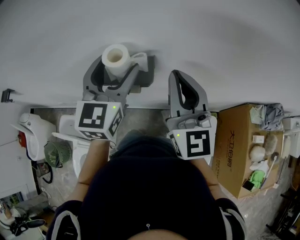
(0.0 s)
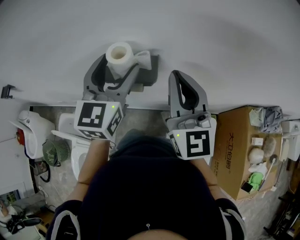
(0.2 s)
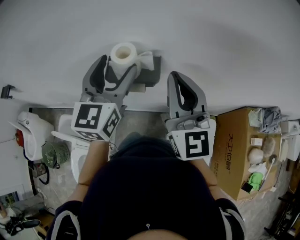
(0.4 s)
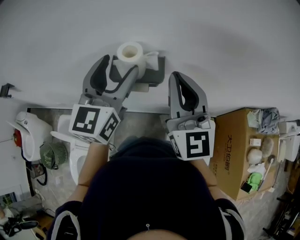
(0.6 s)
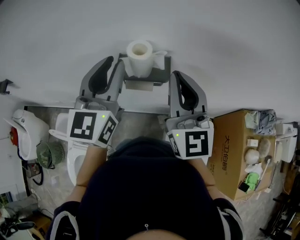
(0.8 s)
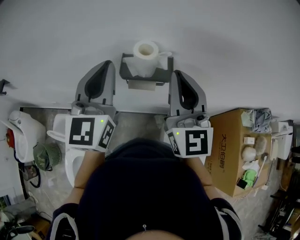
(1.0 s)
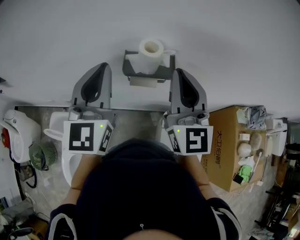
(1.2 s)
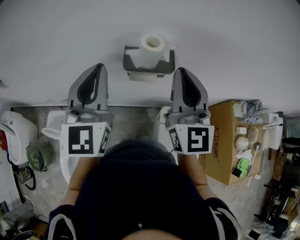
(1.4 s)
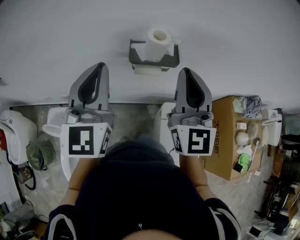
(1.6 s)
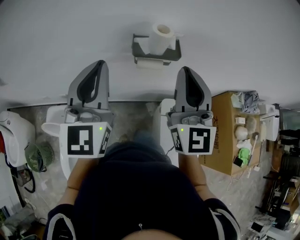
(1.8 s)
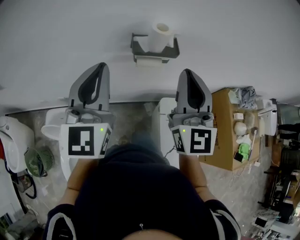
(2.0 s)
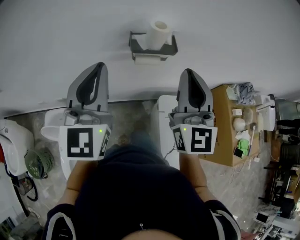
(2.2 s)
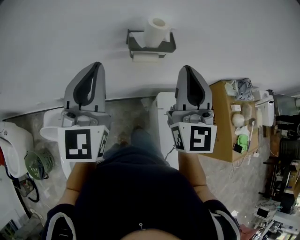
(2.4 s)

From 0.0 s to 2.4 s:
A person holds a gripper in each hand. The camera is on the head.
From 0.0 s to 1.2 s: The left gripper heads to the left and backward, covering some 15 cm, and closes its fingers, while the right gripper heads to the left, covering about 10 cm.
From 1.2 s to 2.4 s: The grippers both shift backward by about 10 cm.

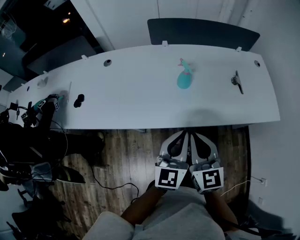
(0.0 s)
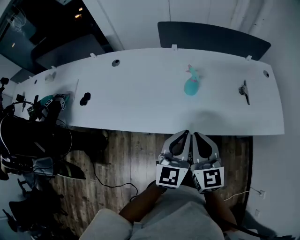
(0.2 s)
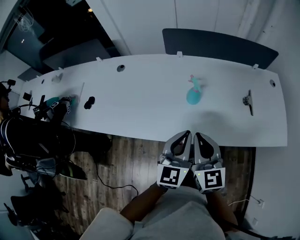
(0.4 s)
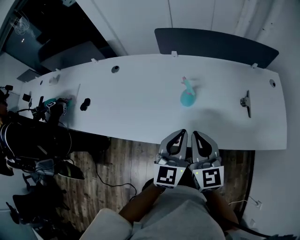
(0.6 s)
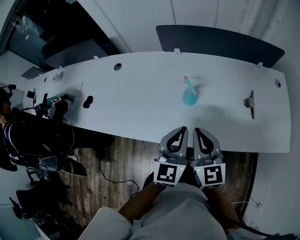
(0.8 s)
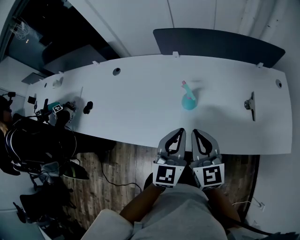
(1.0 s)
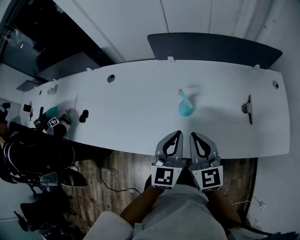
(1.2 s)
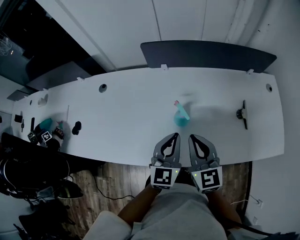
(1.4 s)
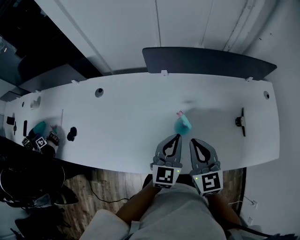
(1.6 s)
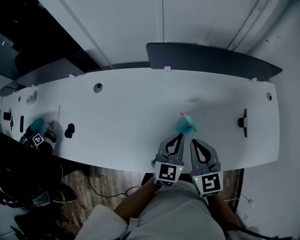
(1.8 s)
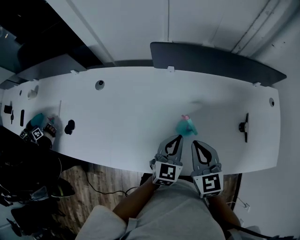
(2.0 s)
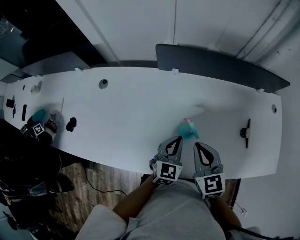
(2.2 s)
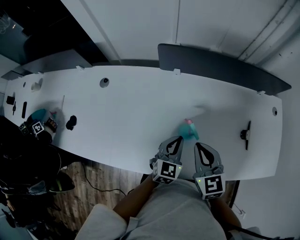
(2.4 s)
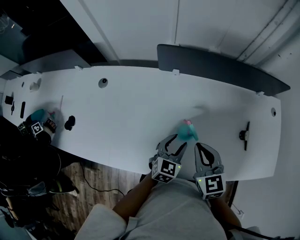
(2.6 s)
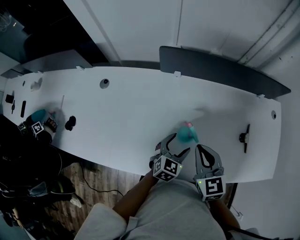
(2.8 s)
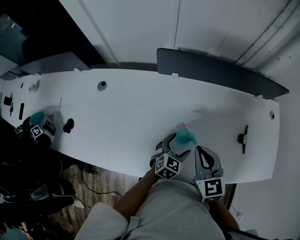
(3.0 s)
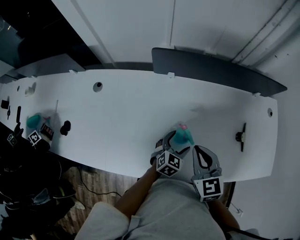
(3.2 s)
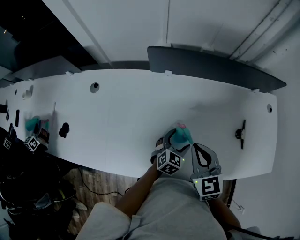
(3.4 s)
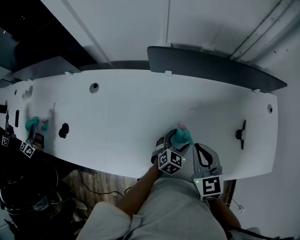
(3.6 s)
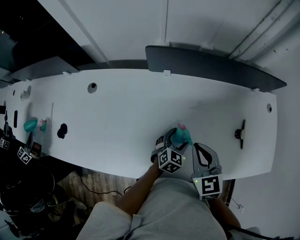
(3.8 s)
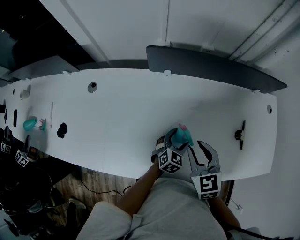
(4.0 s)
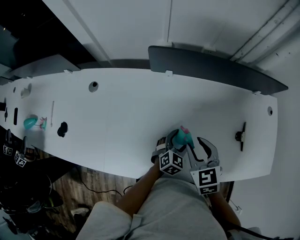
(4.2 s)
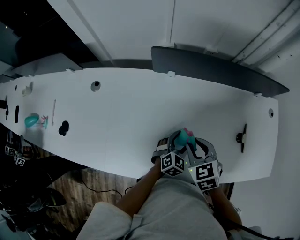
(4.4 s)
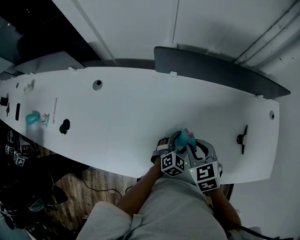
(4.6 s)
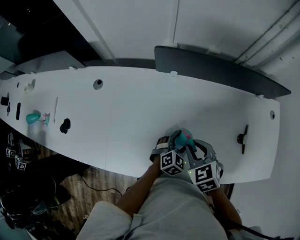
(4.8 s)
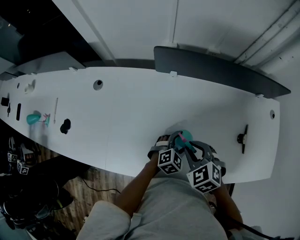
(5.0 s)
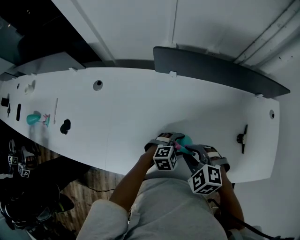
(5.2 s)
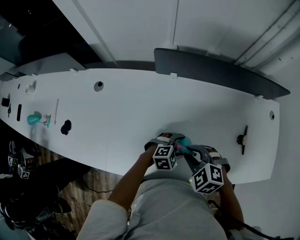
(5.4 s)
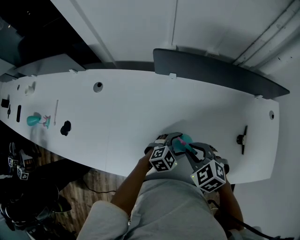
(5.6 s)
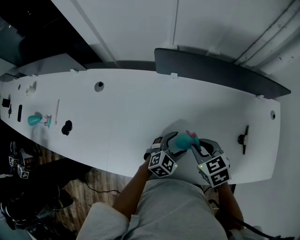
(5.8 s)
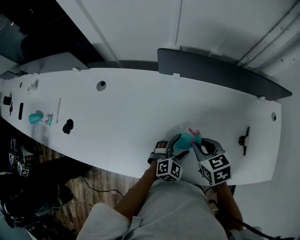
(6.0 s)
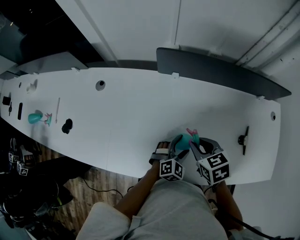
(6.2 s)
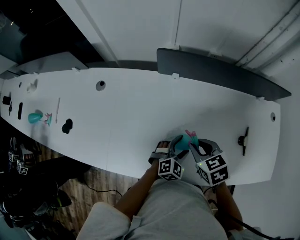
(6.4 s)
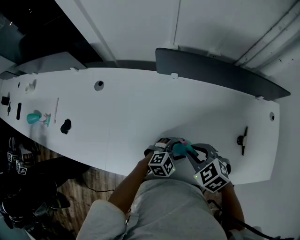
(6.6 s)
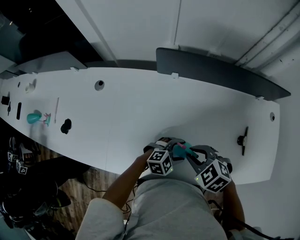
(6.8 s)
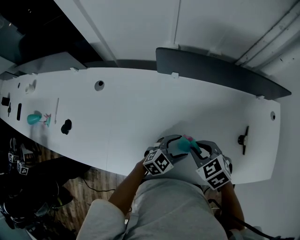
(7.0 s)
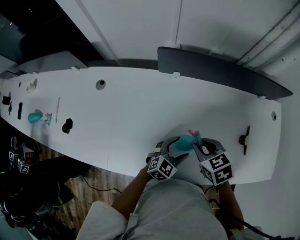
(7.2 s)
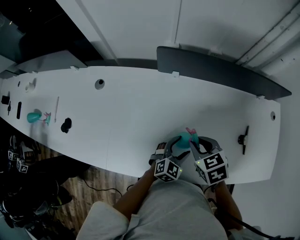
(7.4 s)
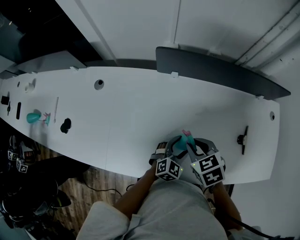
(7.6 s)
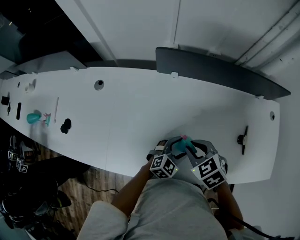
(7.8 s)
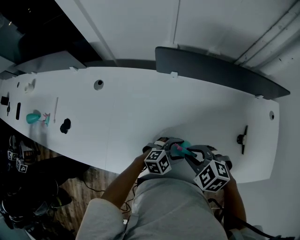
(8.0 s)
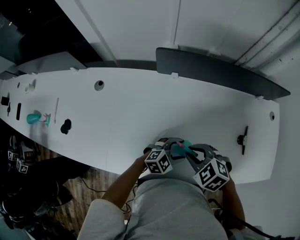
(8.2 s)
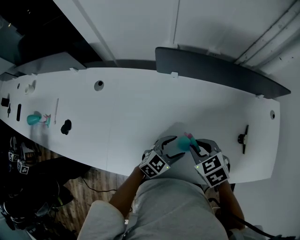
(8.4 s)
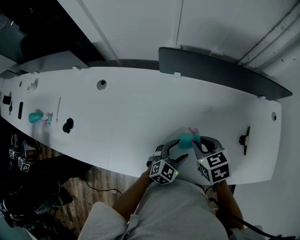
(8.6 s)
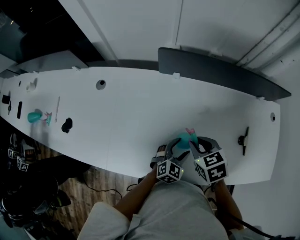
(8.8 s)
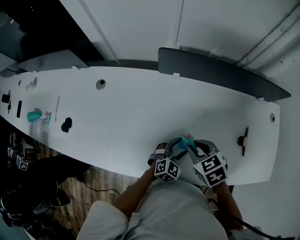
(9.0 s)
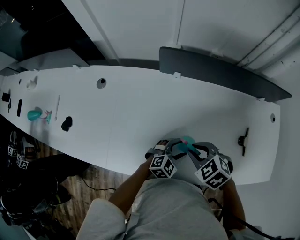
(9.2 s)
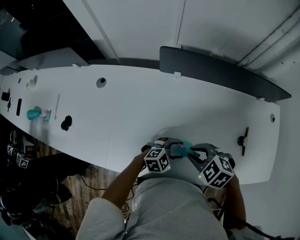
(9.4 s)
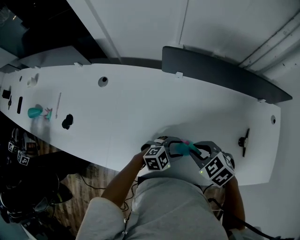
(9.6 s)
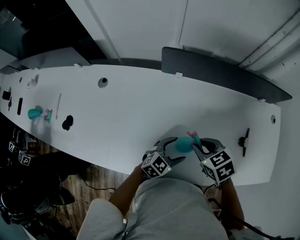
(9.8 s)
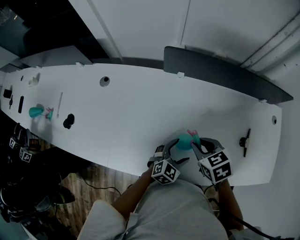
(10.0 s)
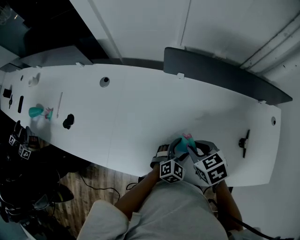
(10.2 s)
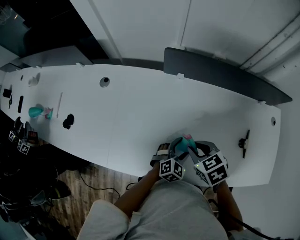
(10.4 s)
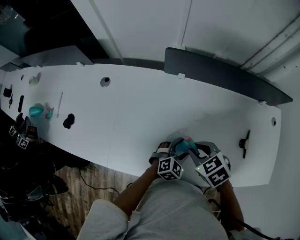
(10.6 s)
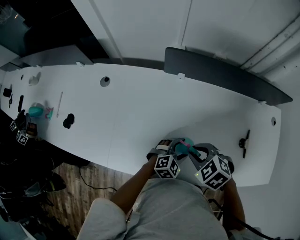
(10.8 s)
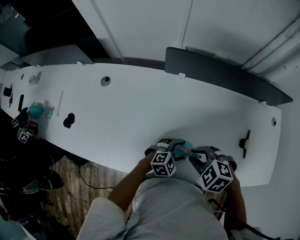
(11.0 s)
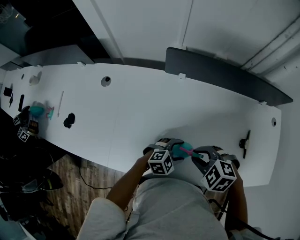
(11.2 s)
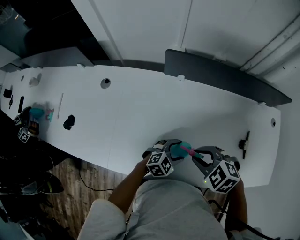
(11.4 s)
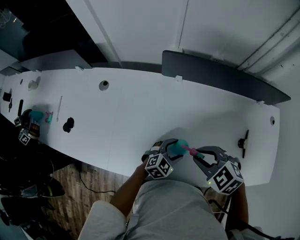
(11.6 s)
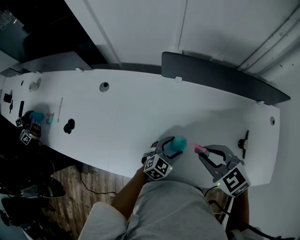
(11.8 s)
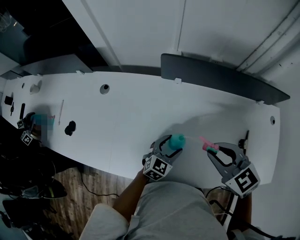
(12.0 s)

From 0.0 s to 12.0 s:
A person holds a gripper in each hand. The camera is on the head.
From 0.0 s to 1.6 s: Both grippers travel together forward, roughly 25 cm.
From 1.6 s to 3.0 s: The left gripper goes roughly 15 cm downward, changes its angle by approximately 30 degrees, and opens its fingers.
From 3.0 s to 4.4 s: The right gripper moves downward, some 5 cm, swivels some 20 degrees, and opens up.
From 10.4 s to 12.0 s: The left gripper moves roughly 5 cm. Meanwhile the right gripper is displaced upward by roughly 10 cm, and turns by about 30 degrees.

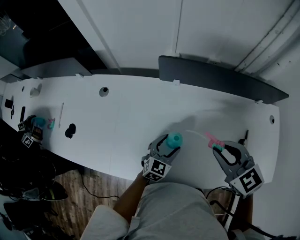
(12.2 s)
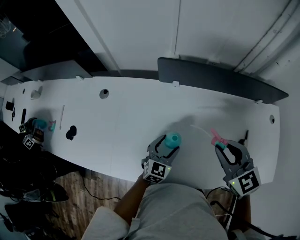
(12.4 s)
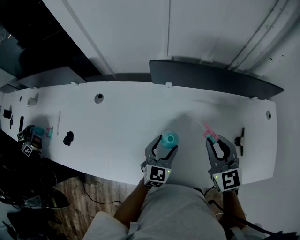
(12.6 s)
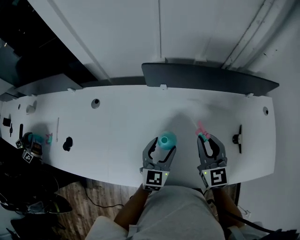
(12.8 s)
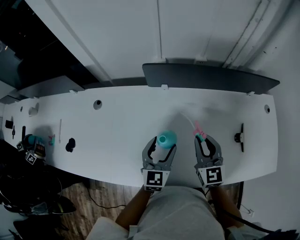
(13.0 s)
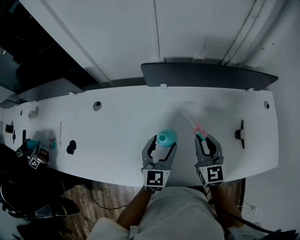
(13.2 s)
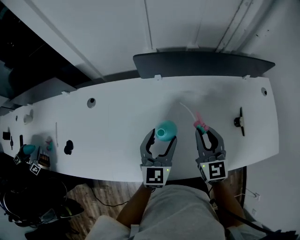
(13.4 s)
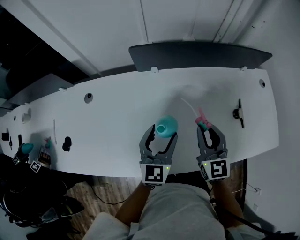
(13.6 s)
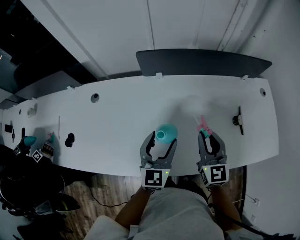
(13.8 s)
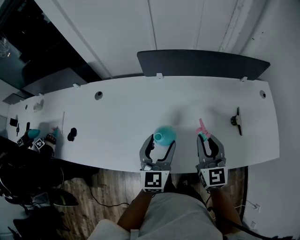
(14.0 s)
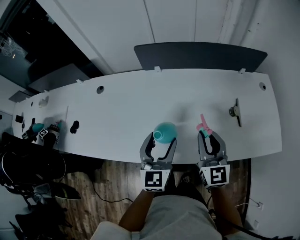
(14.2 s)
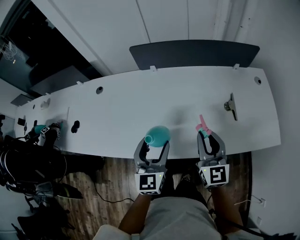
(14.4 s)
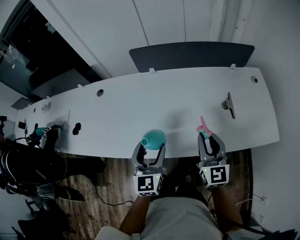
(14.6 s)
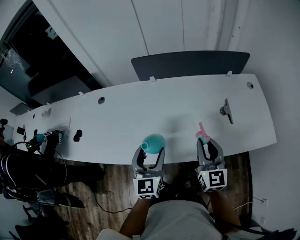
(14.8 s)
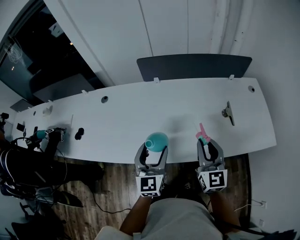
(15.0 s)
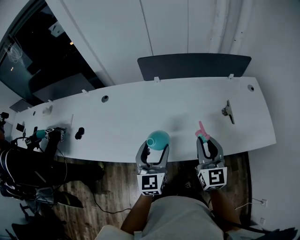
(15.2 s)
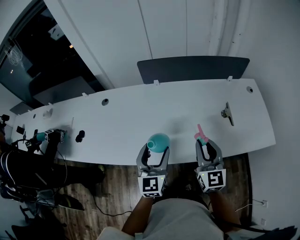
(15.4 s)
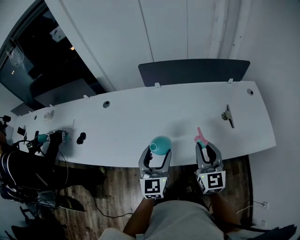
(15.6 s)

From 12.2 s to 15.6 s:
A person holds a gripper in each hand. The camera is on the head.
From 12.2 s to 13.8 s: The left gripper shifts some 15 cm upward, and changes its angle by roughly 20 degrees, while the right gripper shifts some 5 cm downward, and turns by approximately 40 degrees.
From 13.8 s to 15.6 s: The two grippers go roughly 15 cm backward.

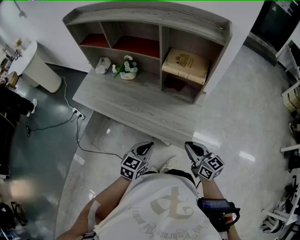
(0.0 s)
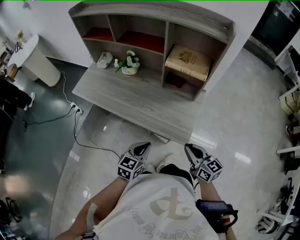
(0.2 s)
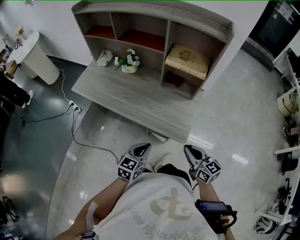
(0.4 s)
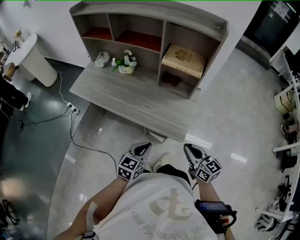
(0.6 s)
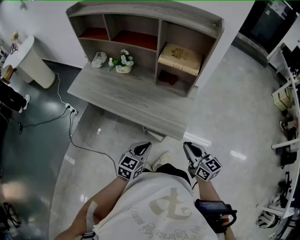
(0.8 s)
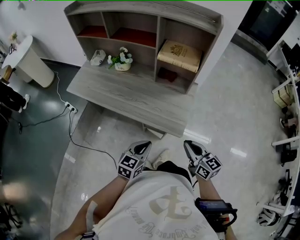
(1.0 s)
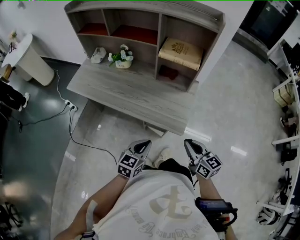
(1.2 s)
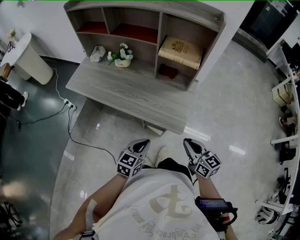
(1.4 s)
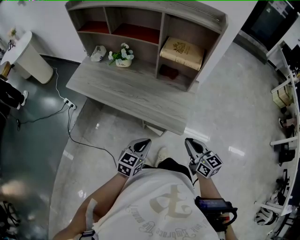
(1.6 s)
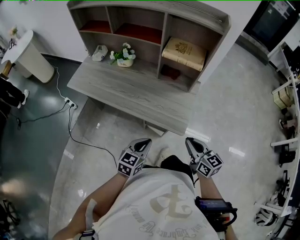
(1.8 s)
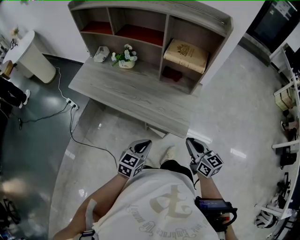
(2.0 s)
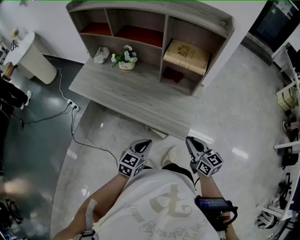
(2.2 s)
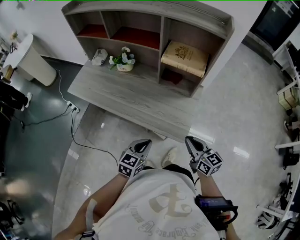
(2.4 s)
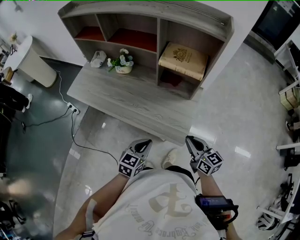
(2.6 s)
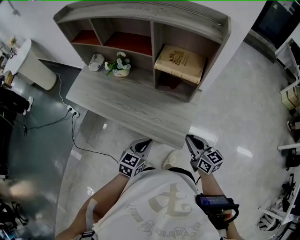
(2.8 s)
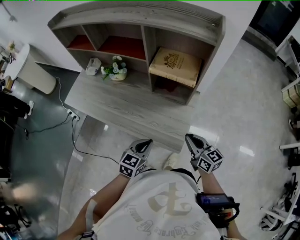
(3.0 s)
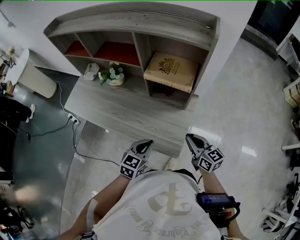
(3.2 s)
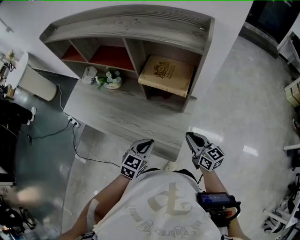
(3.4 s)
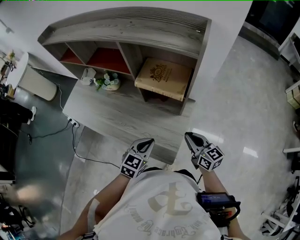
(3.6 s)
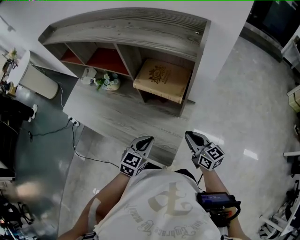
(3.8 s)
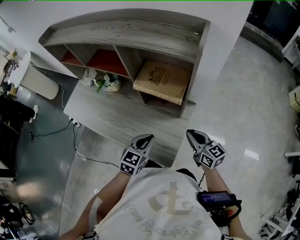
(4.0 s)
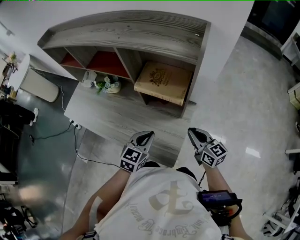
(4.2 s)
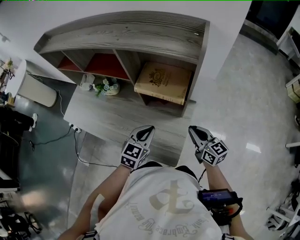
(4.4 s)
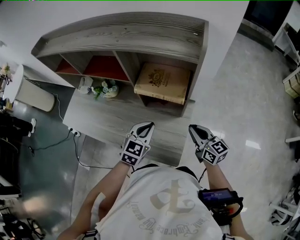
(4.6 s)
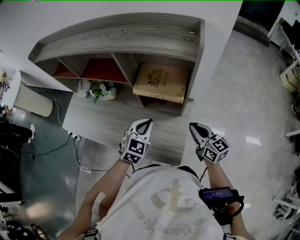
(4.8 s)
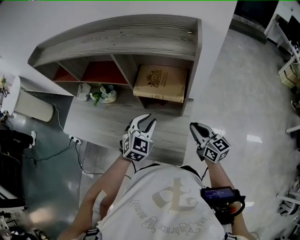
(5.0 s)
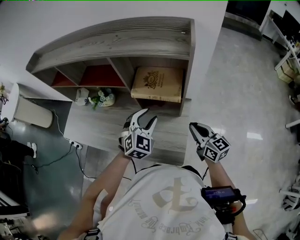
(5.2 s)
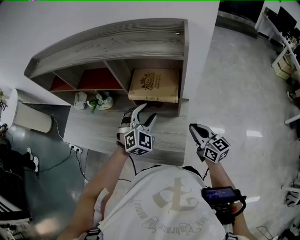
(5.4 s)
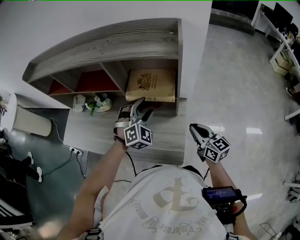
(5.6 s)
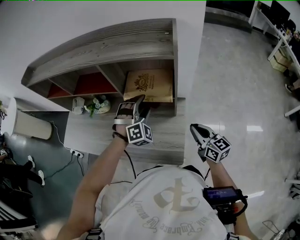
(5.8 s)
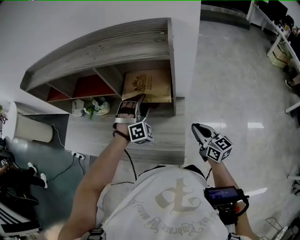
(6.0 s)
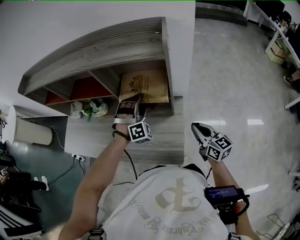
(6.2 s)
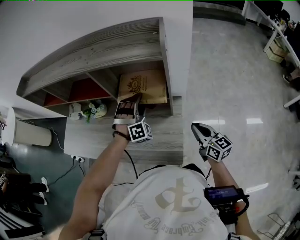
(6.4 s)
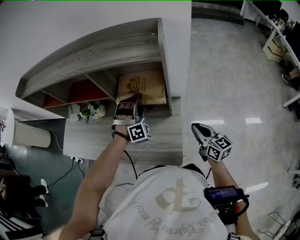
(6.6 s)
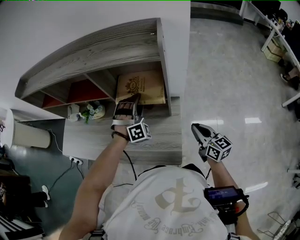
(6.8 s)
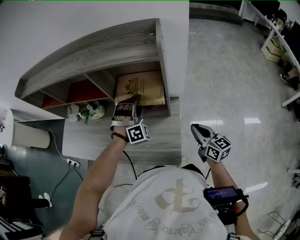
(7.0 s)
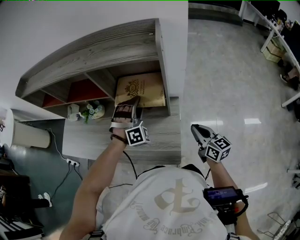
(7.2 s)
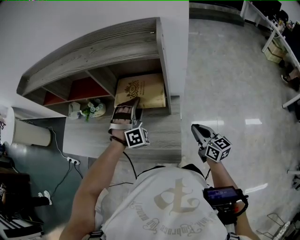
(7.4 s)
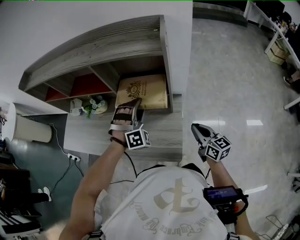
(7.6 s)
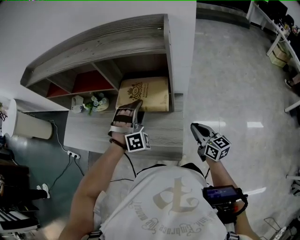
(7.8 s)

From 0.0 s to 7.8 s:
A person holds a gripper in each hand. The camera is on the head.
From 0.0 s to 1.6 s: The grippers both shift backward by approximately 10 cm.
From 1.6 s to 3.2 s: The two grippers go approximately 20 cm forward and to the right.
From 3.2 s to 4.6 s: The right gripper heads forward, covering some 10 cm, while the left gripper heads forward, covering roughly 15 cm.
From 4.6 s to 6.2 s: The right gripper changes place by some 5 cm, while the left gripper travels forward by roughly 10 cm, rolls clockwise, seen from behind, by about 70 degrees, and opens up.
From 6.2 s to 7.8 s: The left gripper moves backward, roughly 5 cm.
